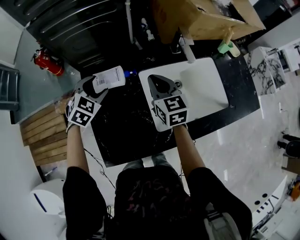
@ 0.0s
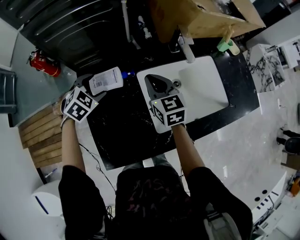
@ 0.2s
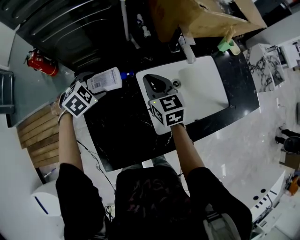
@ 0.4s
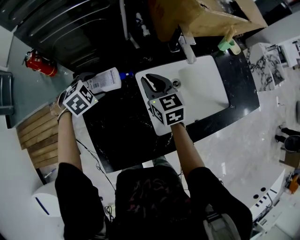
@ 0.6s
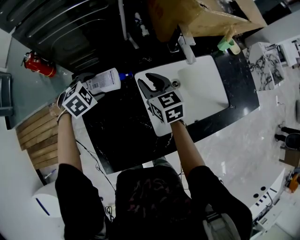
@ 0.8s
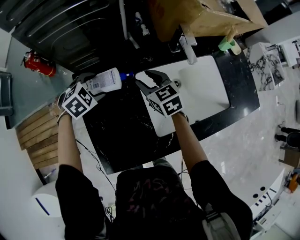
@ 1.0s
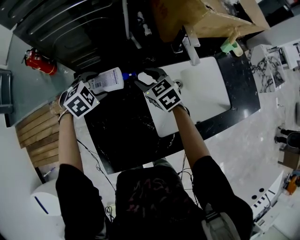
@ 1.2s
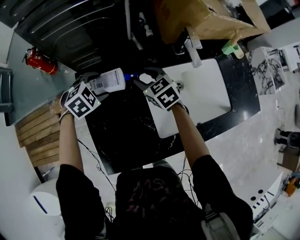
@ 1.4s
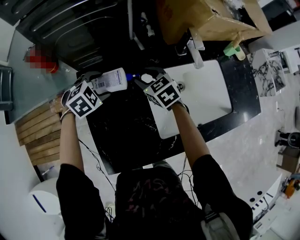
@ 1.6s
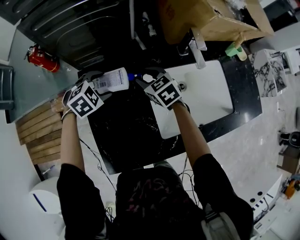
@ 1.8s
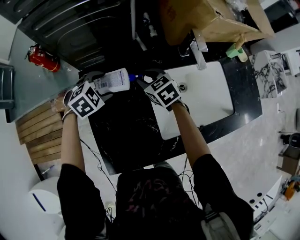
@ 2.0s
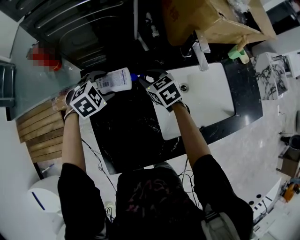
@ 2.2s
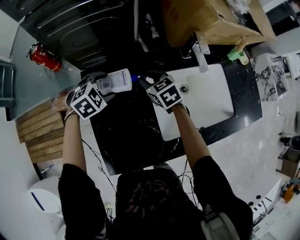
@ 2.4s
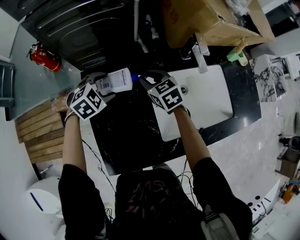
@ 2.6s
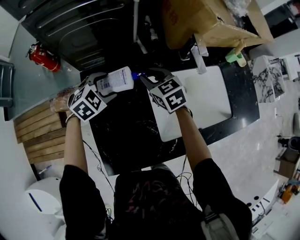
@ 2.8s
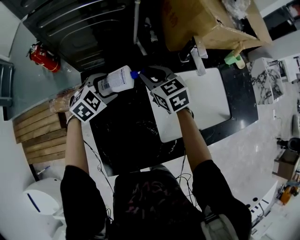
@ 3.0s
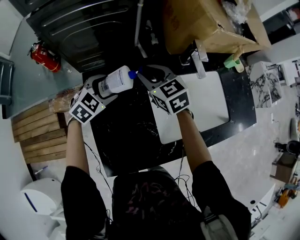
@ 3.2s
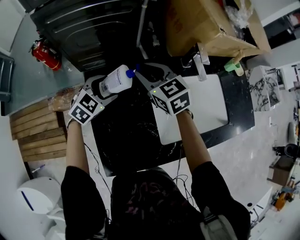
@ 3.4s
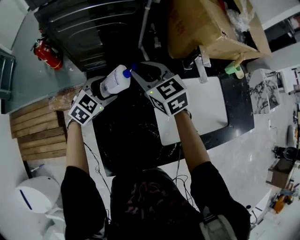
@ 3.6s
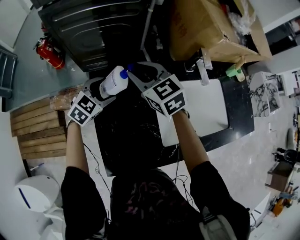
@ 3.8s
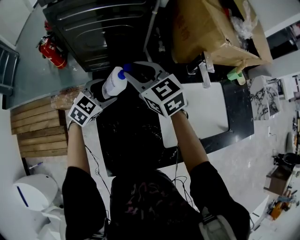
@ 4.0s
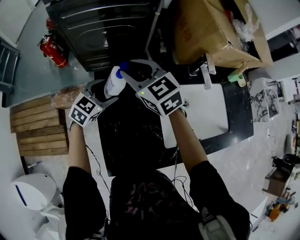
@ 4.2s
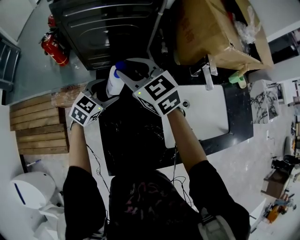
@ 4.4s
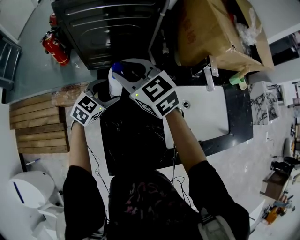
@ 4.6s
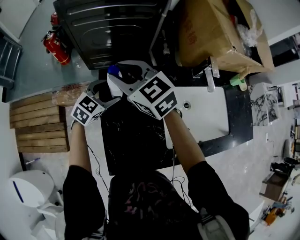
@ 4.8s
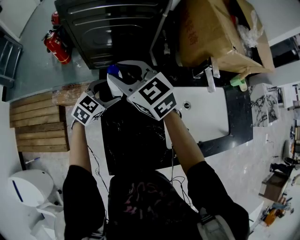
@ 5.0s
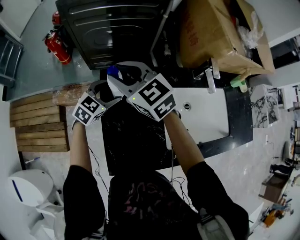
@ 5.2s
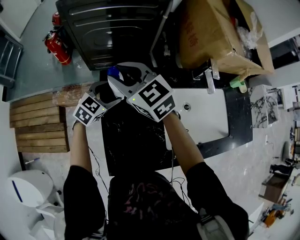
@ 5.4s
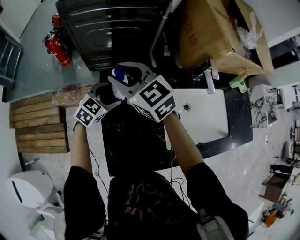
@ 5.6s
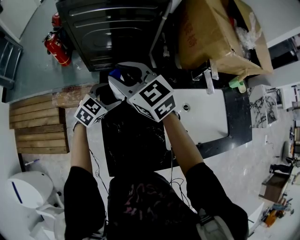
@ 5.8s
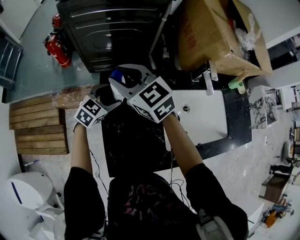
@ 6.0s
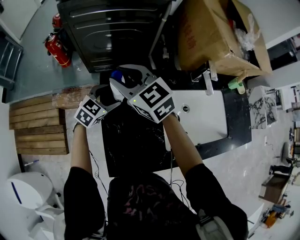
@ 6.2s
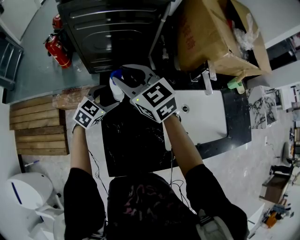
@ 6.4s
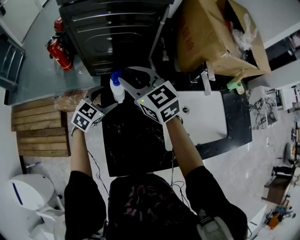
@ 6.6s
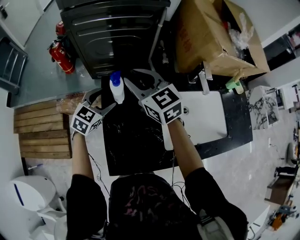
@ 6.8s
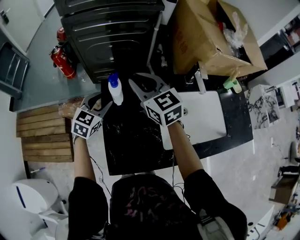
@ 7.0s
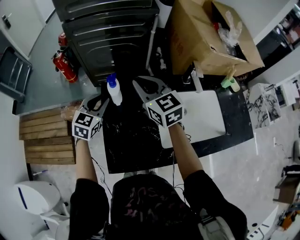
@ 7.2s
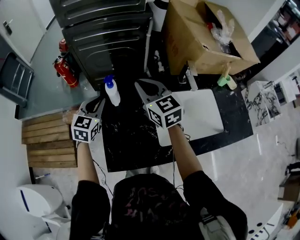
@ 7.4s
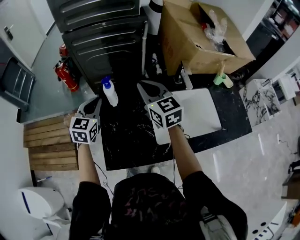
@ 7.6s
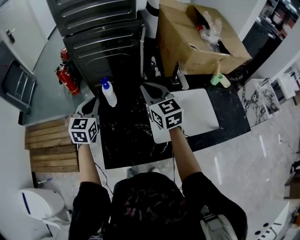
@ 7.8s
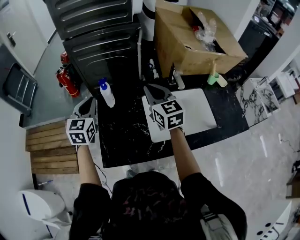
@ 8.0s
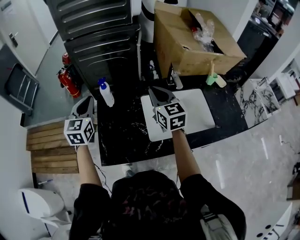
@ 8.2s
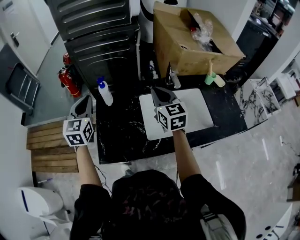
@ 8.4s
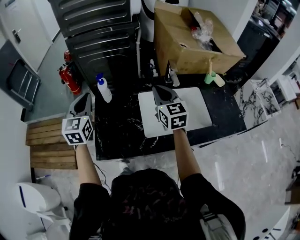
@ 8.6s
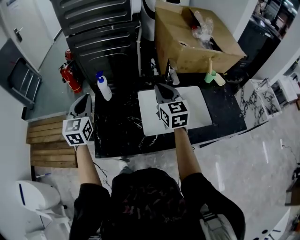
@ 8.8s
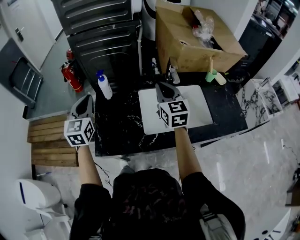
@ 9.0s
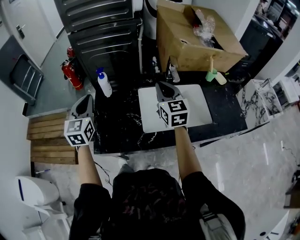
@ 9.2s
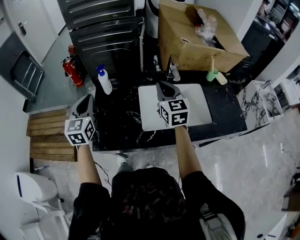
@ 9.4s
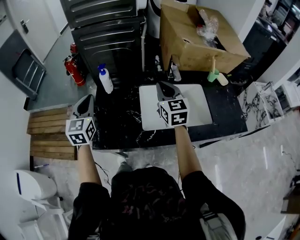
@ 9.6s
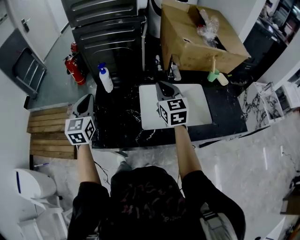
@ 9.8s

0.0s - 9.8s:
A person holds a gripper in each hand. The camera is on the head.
0.0s - 1.4s: The left gripper travels downward by some 5 cm, and changes its angle by roughly 20 degrees. The right gripper travels downward, to the left and forward by about 10 cm, changes its angle by some 30 degrees, and opens its fingers.
1.4s - 2.8s: The grippers move only a little.
2.8s - 4.2s: The right gripper heads to the left and upward, covering about 20 cm, and turns by roughly 20 degrees; the left gripper goes some 5 cm to the left, and rotates approximately 30 degrees.
4.2s - 5.6s: The right gripper heads to the left, covering about 5 cm.
5.6s - 7.0s: The right gripper goes approximately 10 cm to the right; the left gripper travels upward by approximately 5 cm, and closes.
7.0s - 8.4s: The right gripper heads to the right and backward, covering roughly 20 cm, while the left gripper moves upward and backward, roughly 20 cm, turns by about 30 degrees, and closes.
8.4s - 9.8s: The left gripper moves backward, roughly 5 cm.

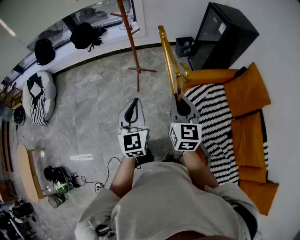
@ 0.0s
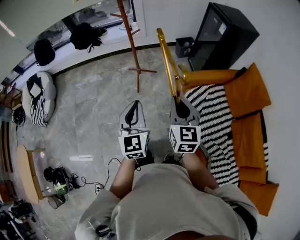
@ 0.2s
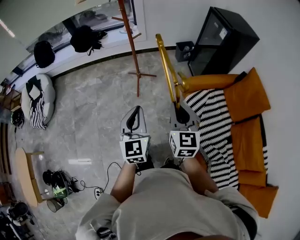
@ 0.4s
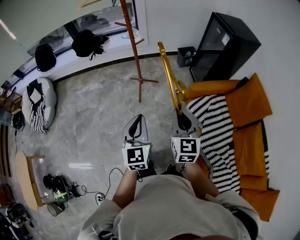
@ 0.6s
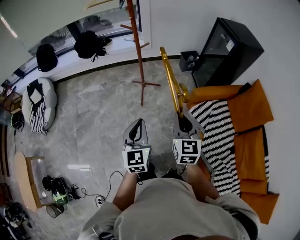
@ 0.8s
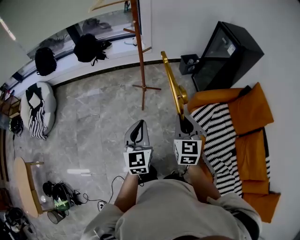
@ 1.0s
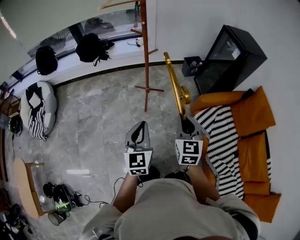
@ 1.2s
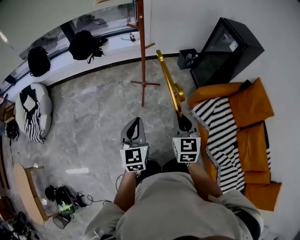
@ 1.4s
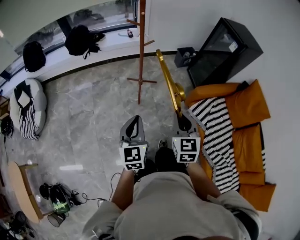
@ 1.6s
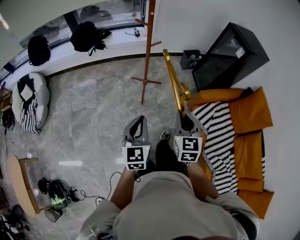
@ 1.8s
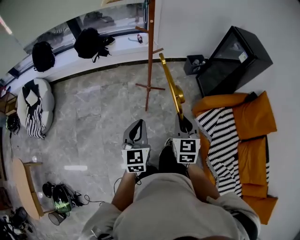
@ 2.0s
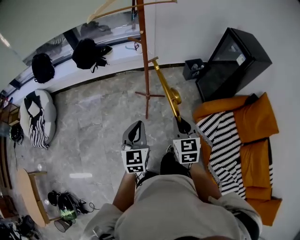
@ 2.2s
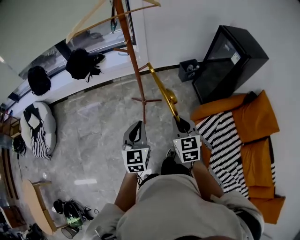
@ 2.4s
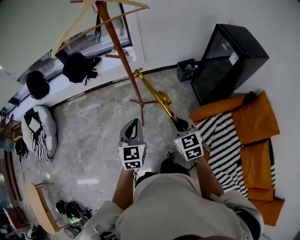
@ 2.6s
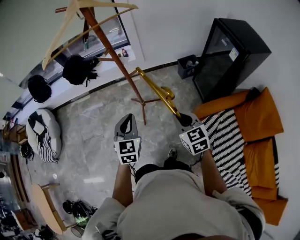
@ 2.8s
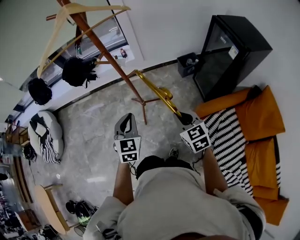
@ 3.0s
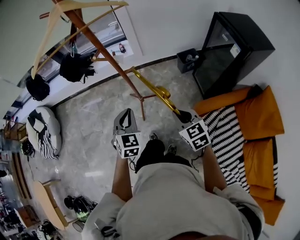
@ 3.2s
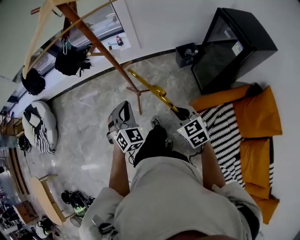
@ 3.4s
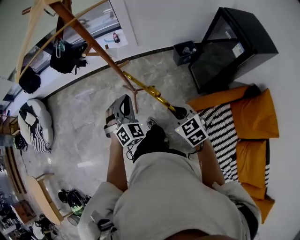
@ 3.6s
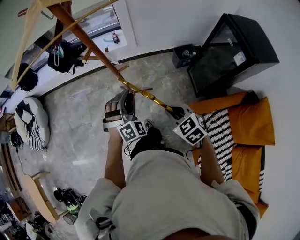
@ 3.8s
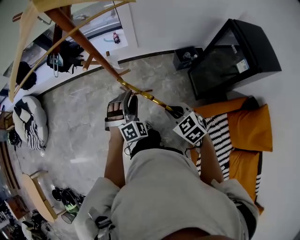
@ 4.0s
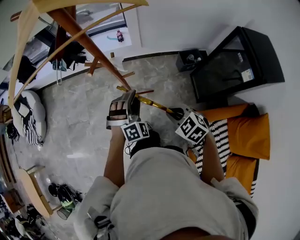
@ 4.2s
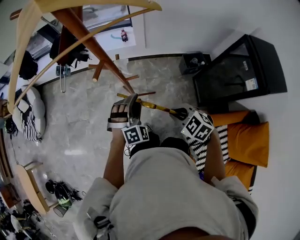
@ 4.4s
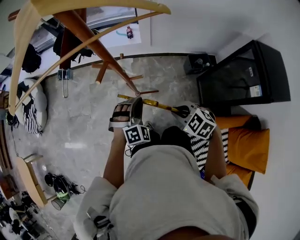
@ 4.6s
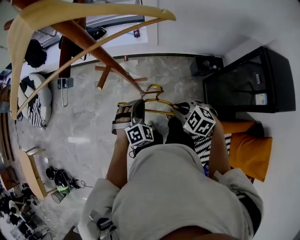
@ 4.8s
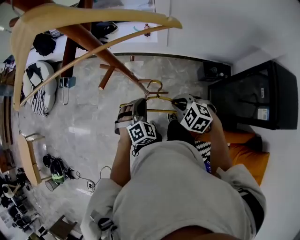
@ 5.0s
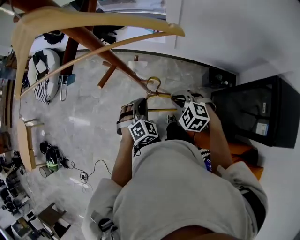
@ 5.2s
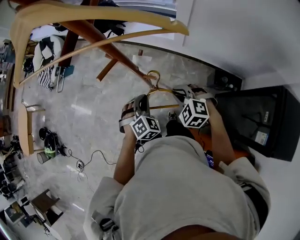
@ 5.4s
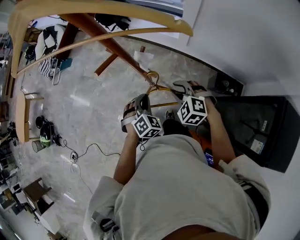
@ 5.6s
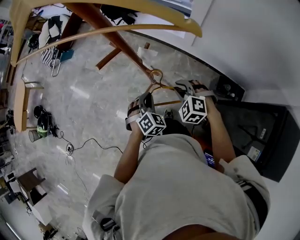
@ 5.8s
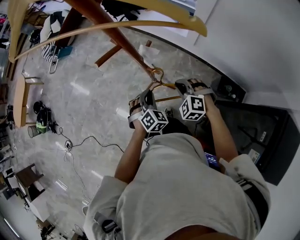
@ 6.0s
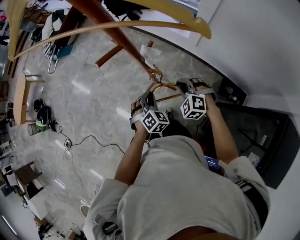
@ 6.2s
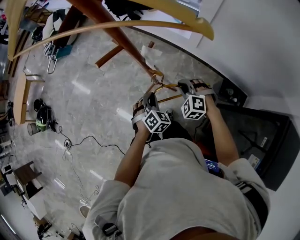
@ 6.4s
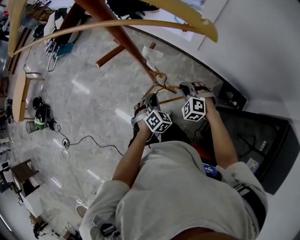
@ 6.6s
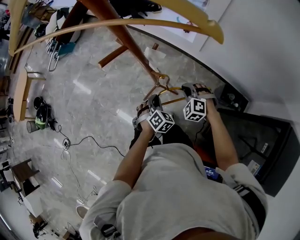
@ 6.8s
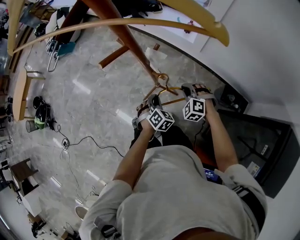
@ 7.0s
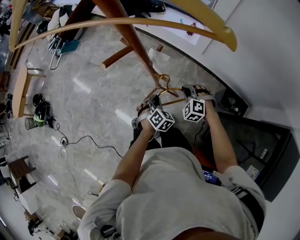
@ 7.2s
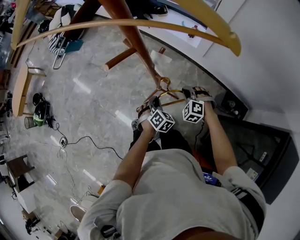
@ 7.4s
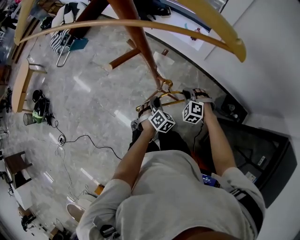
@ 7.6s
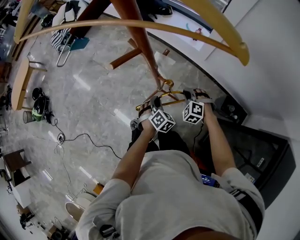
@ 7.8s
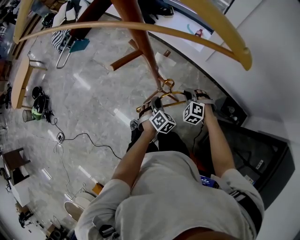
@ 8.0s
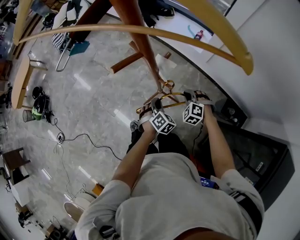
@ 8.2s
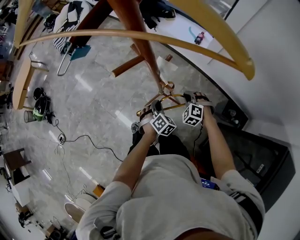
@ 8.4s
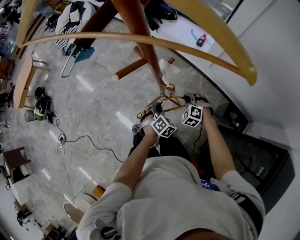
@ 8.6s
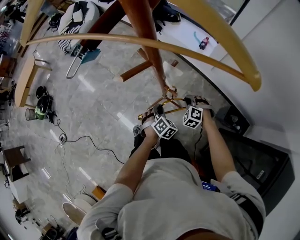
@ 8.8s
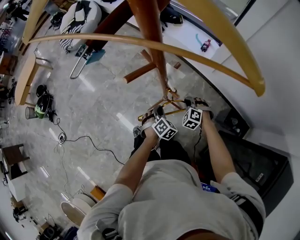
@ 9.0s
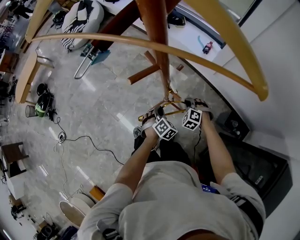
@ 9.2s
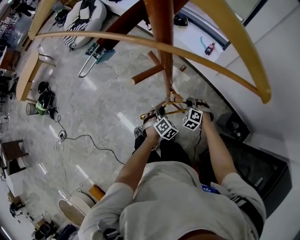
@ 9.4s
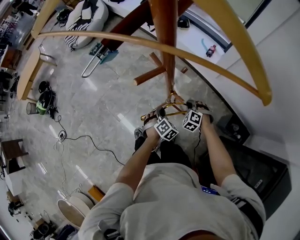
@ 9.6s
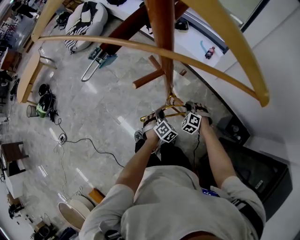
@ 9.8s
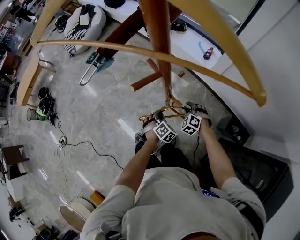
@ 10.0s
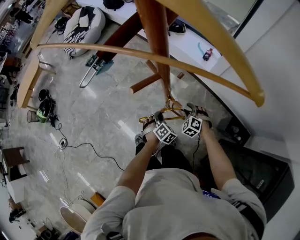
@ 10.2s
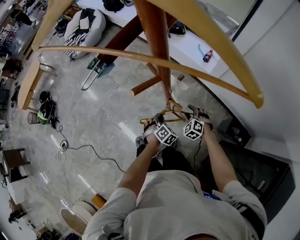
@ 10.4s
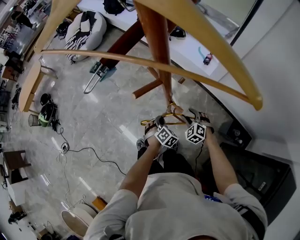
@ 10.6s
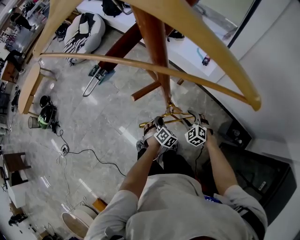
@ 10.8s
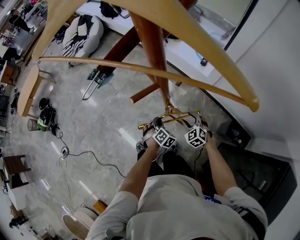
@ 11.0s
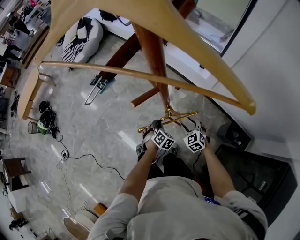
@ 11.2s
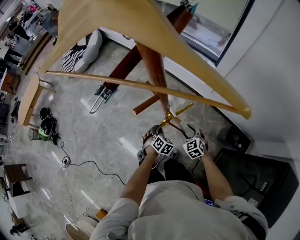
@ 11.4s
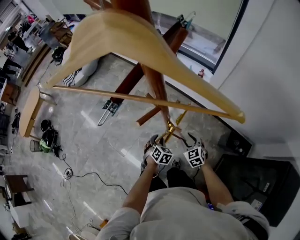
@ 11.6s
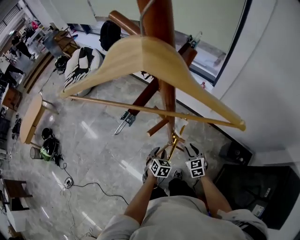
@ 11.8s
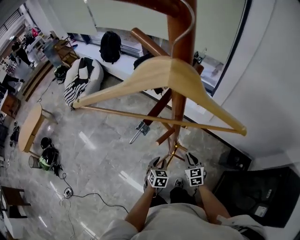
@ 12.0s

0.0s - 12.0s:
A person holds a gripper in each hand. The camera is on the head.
0.0s - 1.6s: Both grippers move to the left, forward and downward, roughly 20 cm.
1.6s - 3.0s: The grippers both shift forward and to the right by approximately 30 cm. The right gripper rotates roughly 20 degrees. Meanwhile the left gripper changes its angle by roughly 20 degrees.
3.0s - 4.4s: The right gripper heads forward, covering some 15 cm, and swivels roughly 40 degrees. The left gripper heads forward, to the right and downward, covering roughly 25 cm, rotates around the line of its fingers by approximately 50 degrees, clockwise from behind, and opens its fingers.
4.4s - 6.0s: The left gripper is displaced downward by some 10 cm, swivels approximately 60 degrees, and closes up. Meanwhile the right gripper ends up about 25 cm from where it was, rolls counterclockwise, seen from behind, by approximately 50 degrees, and opens, then closes once more.
6.0s - 7.6s: The grippers both shift downward by roughly 10 cm.
7.6s - 9.0s: The right gripper shifts by about 5 cm.
9.0s - 10.4s: The right gripper opens.
10.4s - 12.0s: The grippers both shift upward by approximately 10 cm. The left gripper rotates approximately 40 degrees. Meanwhile the right gripper rotates around the line of its fingers by roughly 50 degrees, clockwise from behind, and closes.

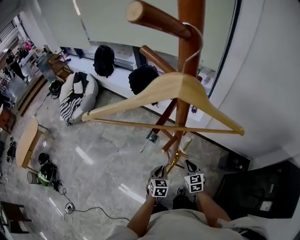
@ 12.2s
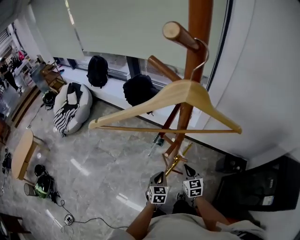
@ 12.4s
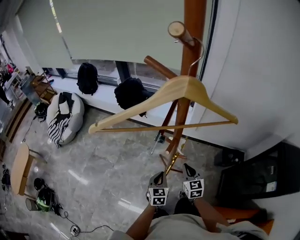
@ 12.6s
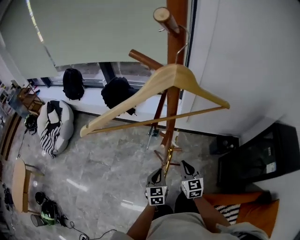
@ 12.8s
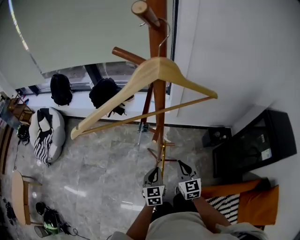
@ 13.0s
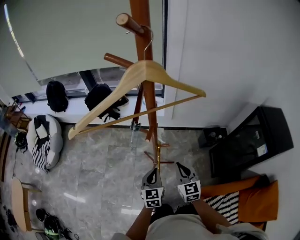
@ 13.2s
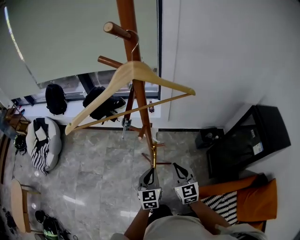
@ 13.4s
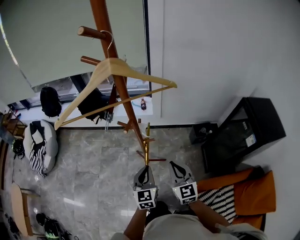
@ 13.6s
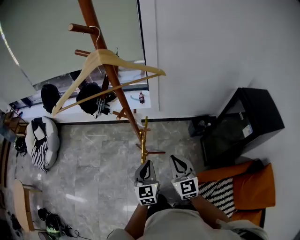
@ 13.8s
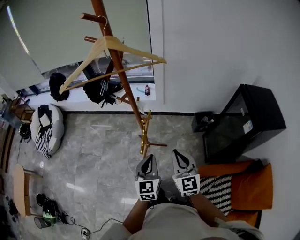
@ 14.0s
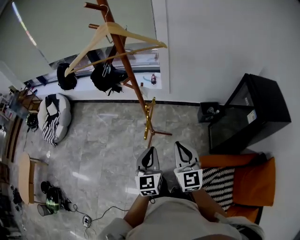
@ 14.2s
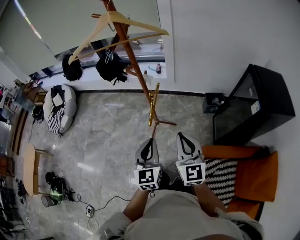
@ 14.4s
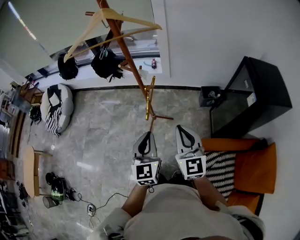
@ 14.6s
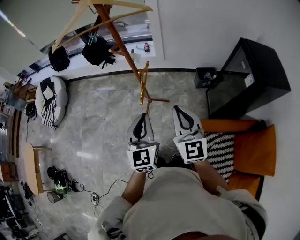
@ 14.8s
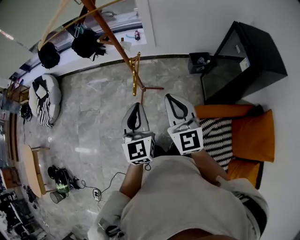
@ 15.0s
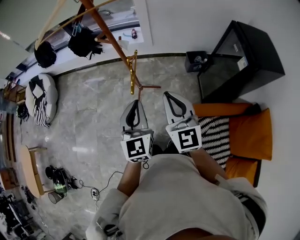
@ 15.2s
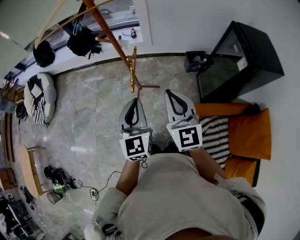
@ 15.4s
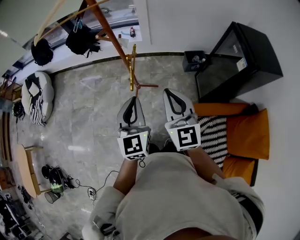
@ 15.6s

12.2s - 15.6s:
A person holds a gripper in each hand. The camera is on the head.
12.2s - 13.8s: The right gripper heads backward and upward, covering about 30 cm, and rotates about 30 degrees. Meanwhile the left gripper is displaced upward and backward by about 25 cm, and swivels about 30 degrees.
13.8s - 15.6s: The two grippers go about 15 cm backward and upward.
